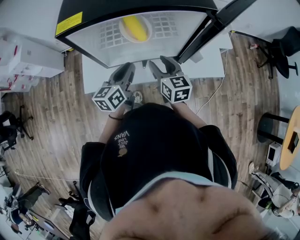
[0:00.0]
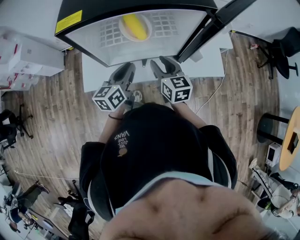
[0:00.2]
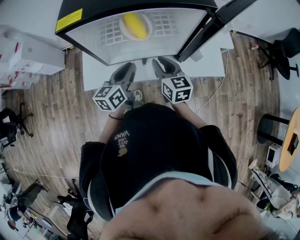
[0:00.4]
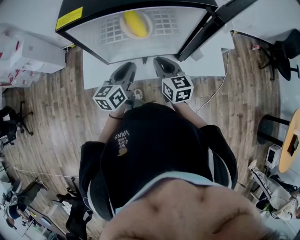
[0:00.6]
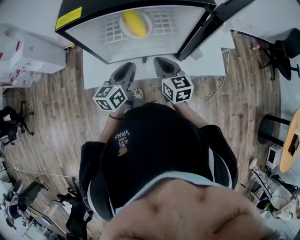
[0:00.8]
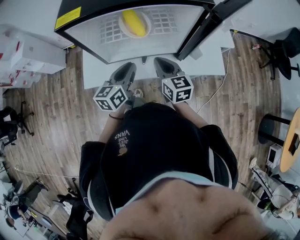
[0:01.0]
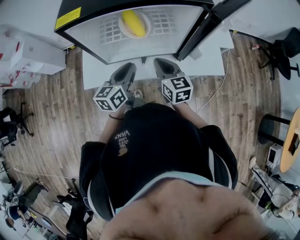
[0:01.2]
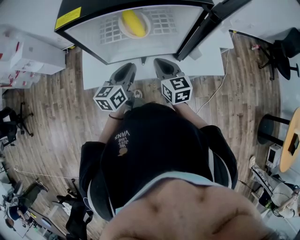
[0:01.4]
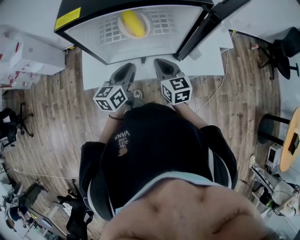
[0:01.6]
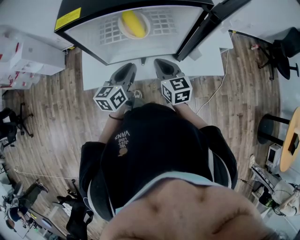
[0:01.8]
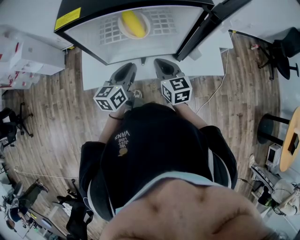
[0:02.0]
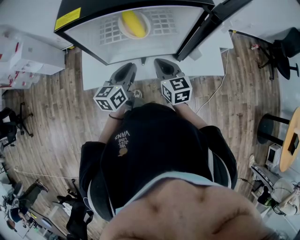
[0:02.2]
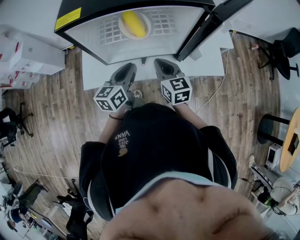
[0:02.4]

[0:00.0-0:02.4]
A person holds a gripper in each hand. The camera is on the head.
0:00.0 to 0:01.2: The right gripper closes up.
0:01.2 to 0:02.4: Neither gripper changes place.

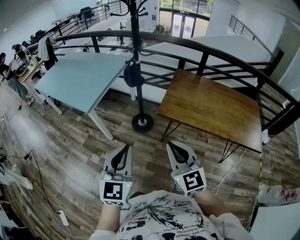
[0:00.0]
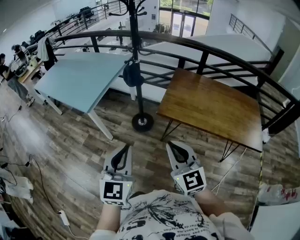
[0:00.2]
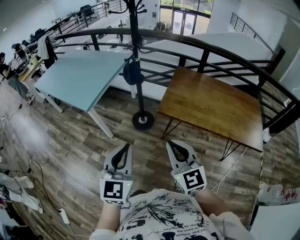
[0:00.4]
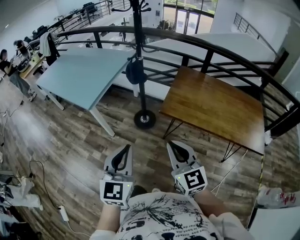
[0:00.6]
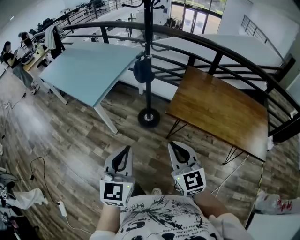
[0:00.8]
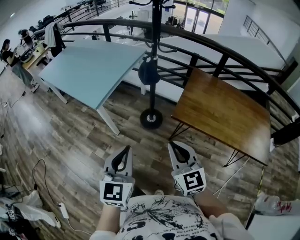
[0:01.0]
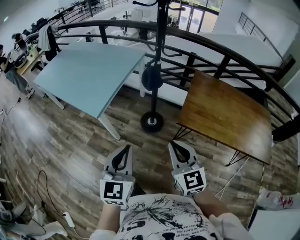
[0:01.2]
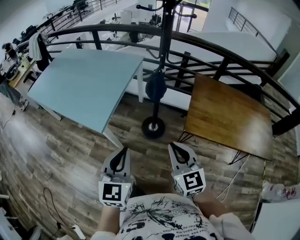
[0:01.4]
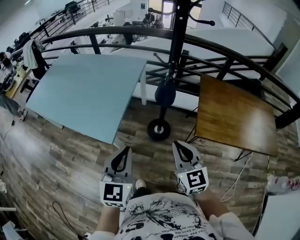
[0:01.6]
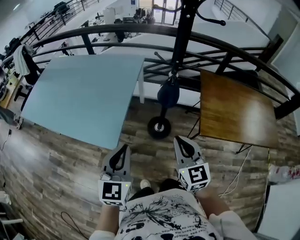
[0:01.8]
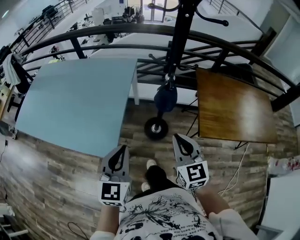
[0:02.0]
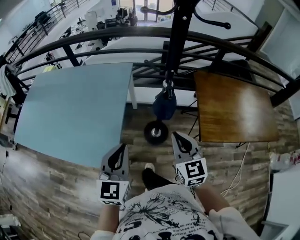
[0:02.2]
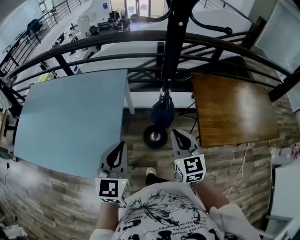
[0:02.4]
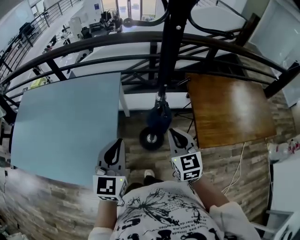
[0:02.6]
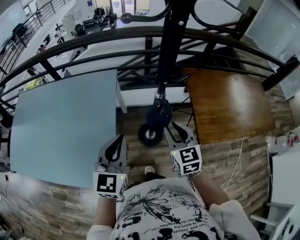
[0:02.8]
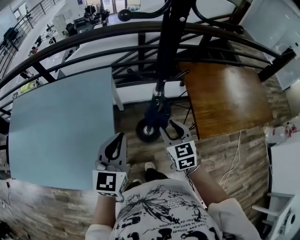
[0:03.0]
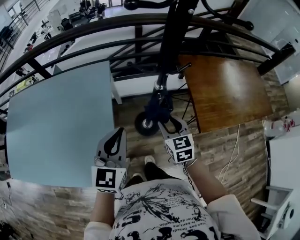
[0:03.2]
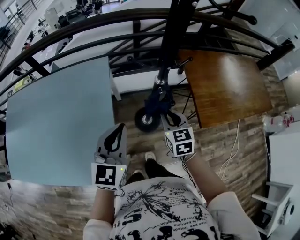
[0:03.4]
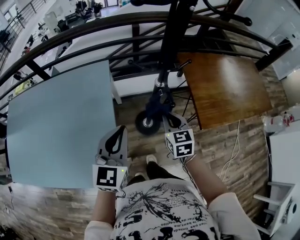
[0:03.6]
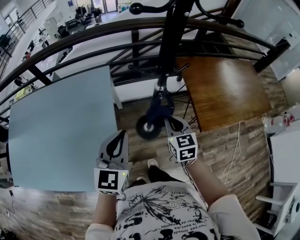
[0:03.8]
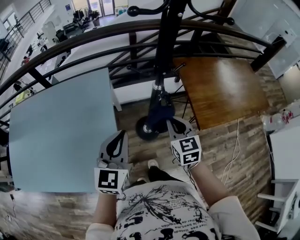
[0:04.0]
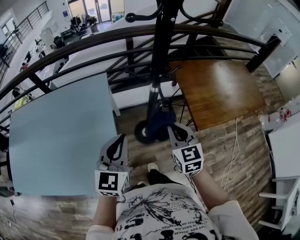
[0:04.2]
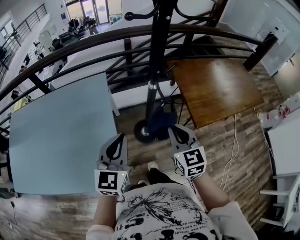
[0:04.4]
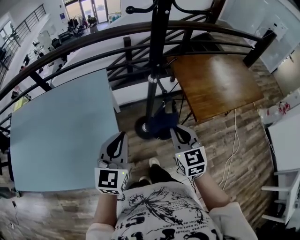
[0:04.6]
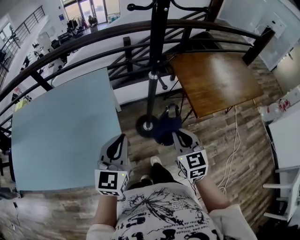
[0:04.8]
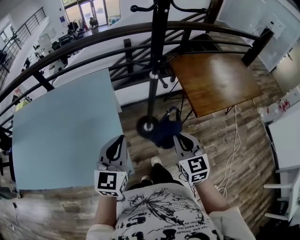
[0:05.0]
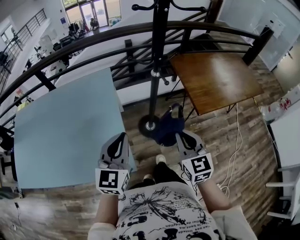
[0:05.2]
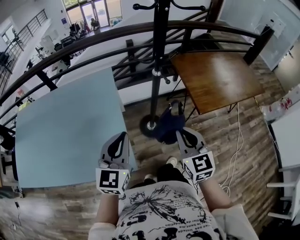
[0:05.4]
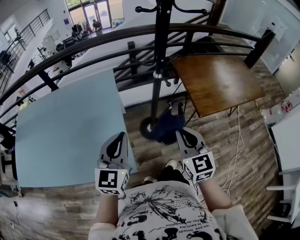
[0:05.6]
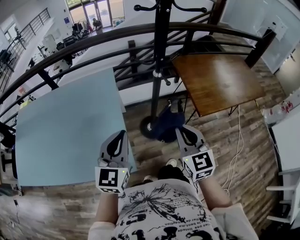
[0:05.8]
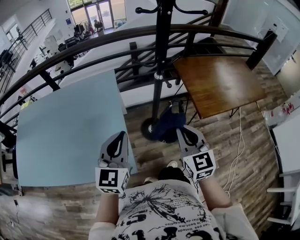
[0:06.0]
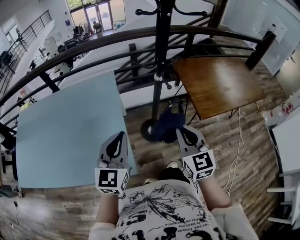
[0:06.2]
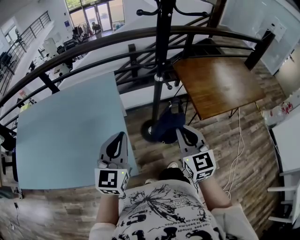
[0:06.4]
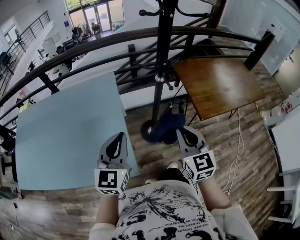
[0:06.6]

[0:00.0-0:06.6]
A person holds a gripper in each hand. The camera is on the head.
0:00.0 to 0:01.6: The pair of grippers is taken forward and to the left, some 40 cm.
0:01.6 to 0:03.2: The right gripper shifts by roughly 35 cm, changes its angle by some 30 degrees, and opens its fingers. The left gripper ends up roughly 35 cm from where it was, and changes its angle by some 30 degrees.
0:03.2 to 0:05.0: The right gripper goes roughly 25 cm backward and upward, and closes up. Meanwhile the left gripper is displaced backward by some 15 cm.
0:05.0 to 0:06.6: The right gripper shifts by roughly 5 cm.

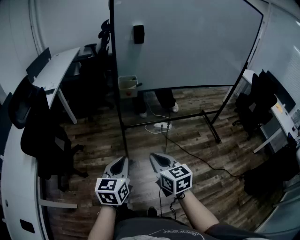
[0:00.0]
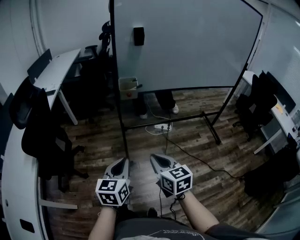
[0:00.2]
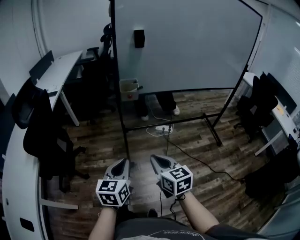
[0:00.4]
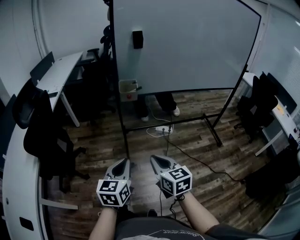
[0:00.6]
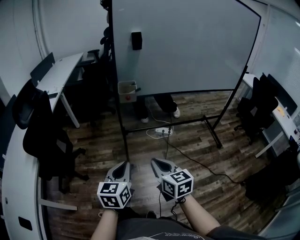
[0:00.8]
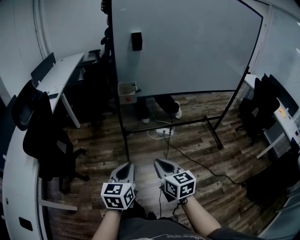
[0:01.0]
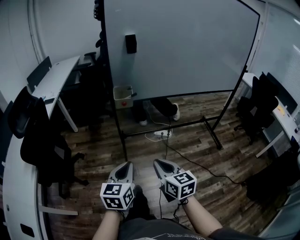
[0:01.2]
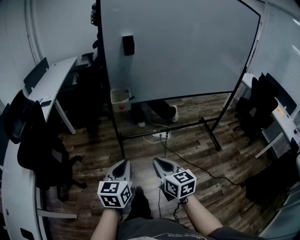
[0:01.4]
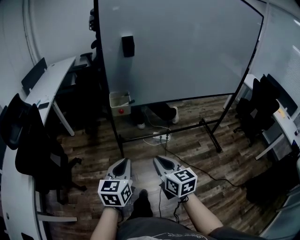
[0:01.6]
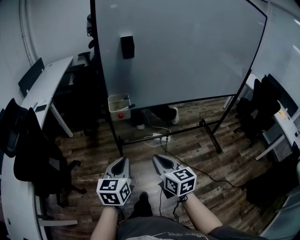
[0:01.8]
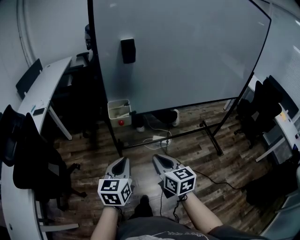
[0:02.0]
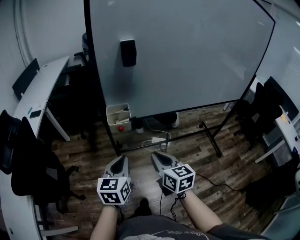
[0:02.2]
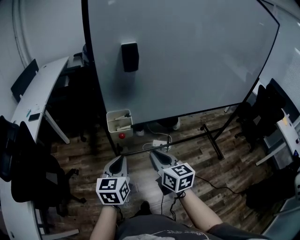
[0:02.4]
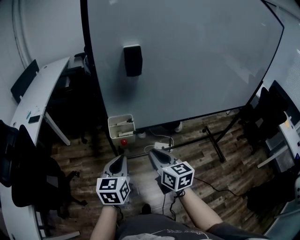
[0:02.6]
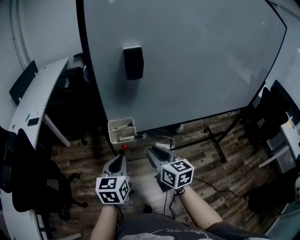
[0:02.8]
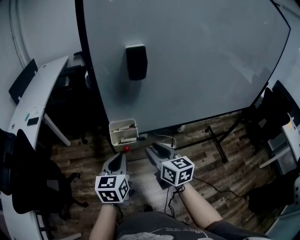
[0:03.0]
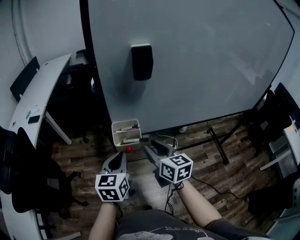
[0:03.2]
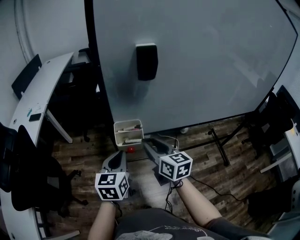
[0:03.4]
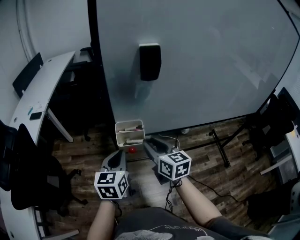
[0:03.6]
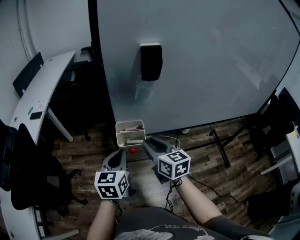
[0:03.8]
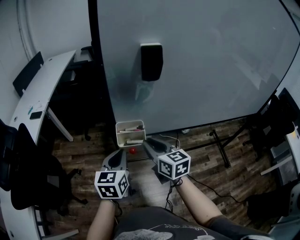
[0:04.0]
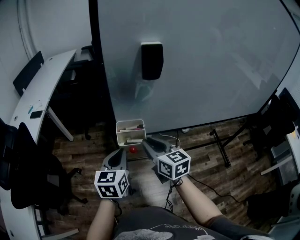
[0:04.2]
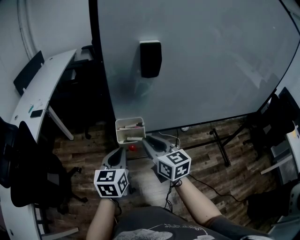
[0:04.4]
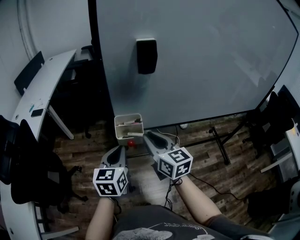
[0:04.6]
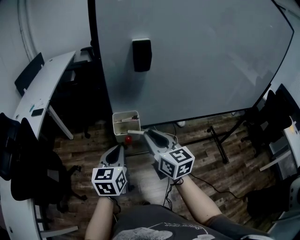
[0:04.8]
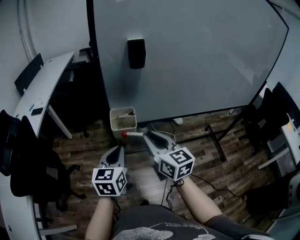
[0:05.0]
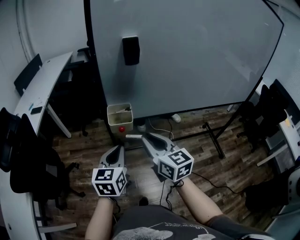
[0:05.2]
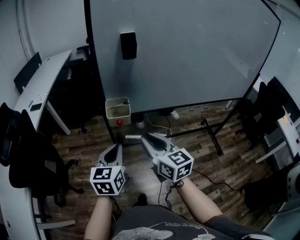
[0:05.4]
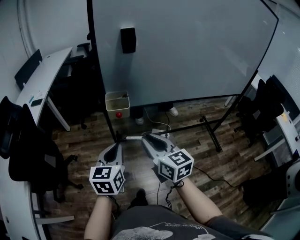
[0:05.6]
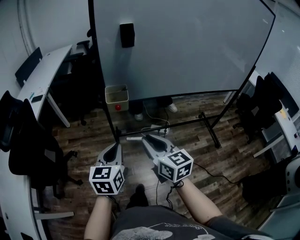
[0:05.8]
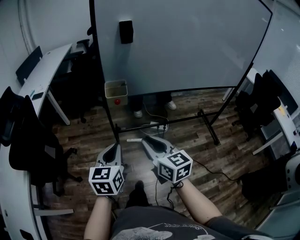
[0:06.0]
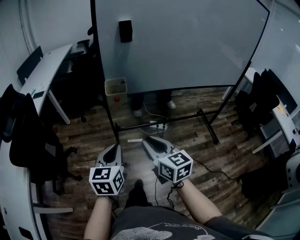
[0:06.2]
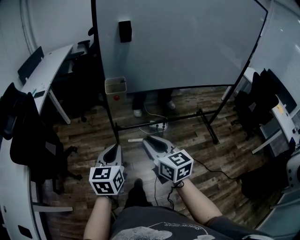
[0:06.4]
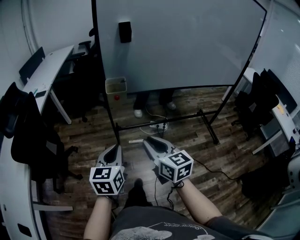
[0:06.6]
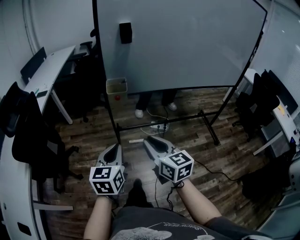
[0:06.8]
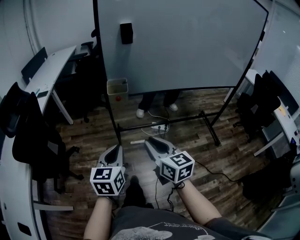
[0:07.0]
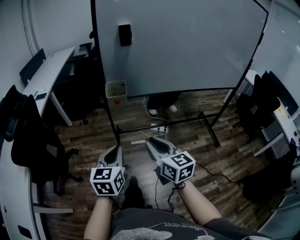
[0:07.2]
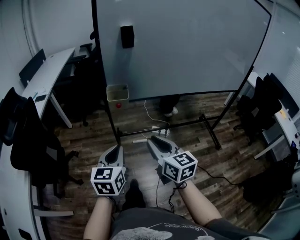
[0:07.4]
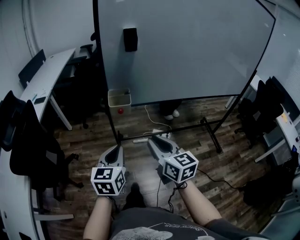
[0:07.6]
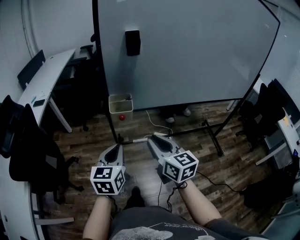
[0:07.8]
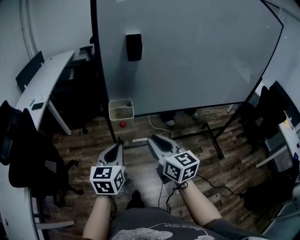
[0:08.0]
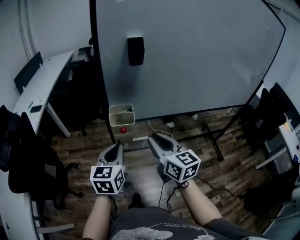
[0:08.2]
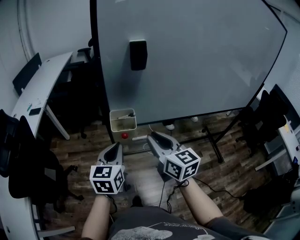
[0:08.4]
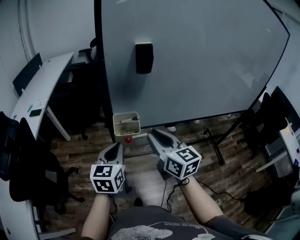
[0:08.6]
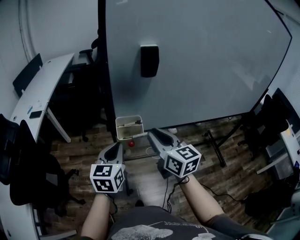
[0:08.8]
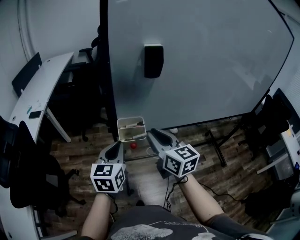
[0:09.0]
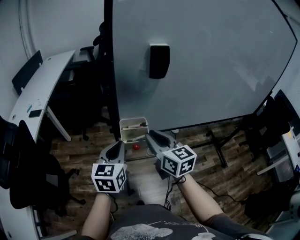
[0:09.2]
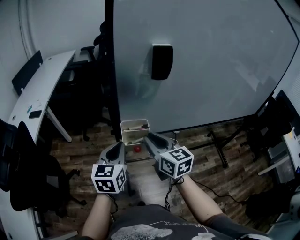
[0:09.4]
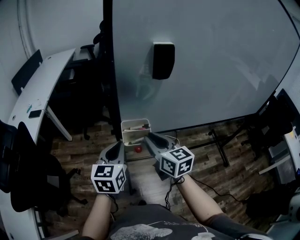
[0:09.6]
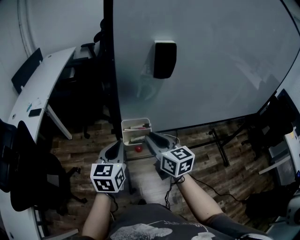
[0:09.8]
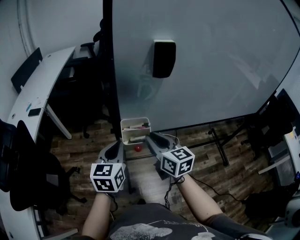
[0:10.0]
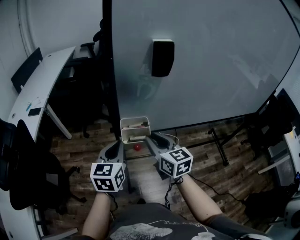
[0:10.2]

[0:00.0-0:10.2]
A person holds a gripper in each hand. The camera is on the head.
0:00.0 to 0:01.4: The left gripper moves to the right and forward, approximately 5 cm, while the right gripper travels to the right by approximately 5 cm.
0:01.4 to 0:03.0: Both grippers move forward, about 35 cm. The right gripper opens its fingers.
0:03.0 to 0:04.4: The right gripper changes place by some 5 cm.
0:04.4 to 0:05.8: Both grippers move backward, approximately 20 cm.
0:05.8 to 0:07.2: The grippers both shift backward by roughly 5 cm.
0:07.2 to 0:08.8: Both grippers move forward, roughly 25 cm.
0:08.8 to 0:10.2: The left gripper moves about 5 cm, while the right gripper moves downward, roughly 10 cm.

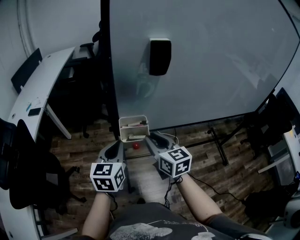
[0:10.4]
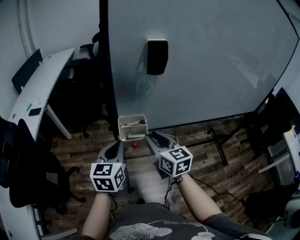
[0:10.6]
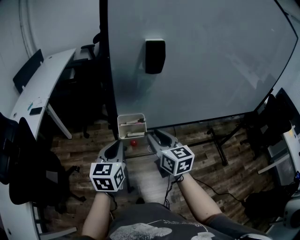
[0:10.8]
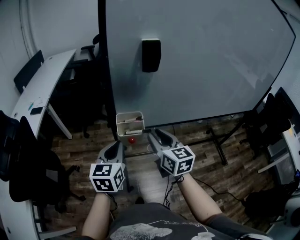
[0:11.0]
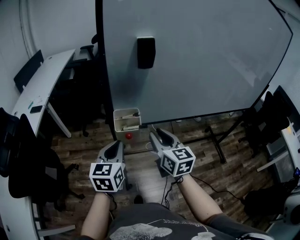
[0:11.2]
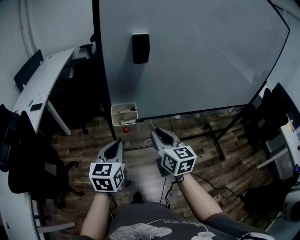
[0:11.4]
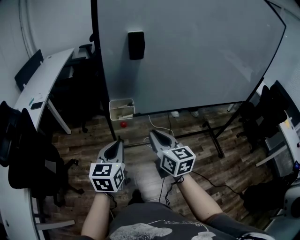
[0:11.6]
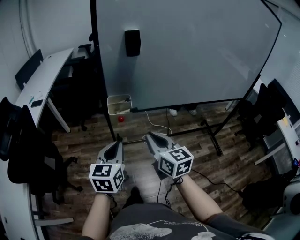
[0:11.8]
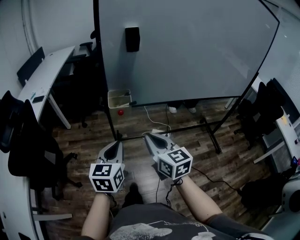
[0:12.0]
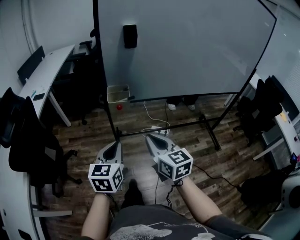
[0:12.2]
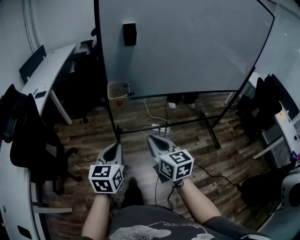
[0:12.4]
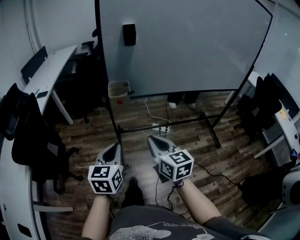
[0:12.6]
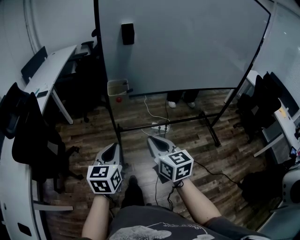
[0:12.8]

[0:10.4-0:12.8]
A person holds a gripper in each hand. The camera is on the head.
0:10.4 to 0:11.6: The left gripper moves backward, some 10 cm. The right gripper moves backward and to the right, approximately 15 cm.
0:11.6 to 0:12.8: Both grippers move backward, about 20 cm.

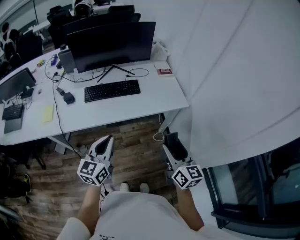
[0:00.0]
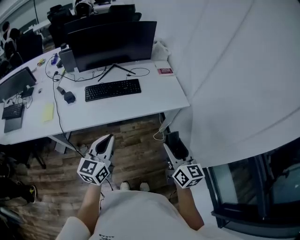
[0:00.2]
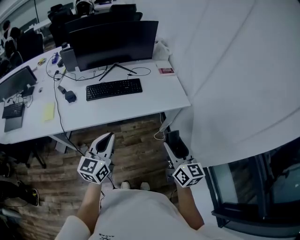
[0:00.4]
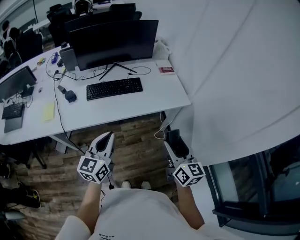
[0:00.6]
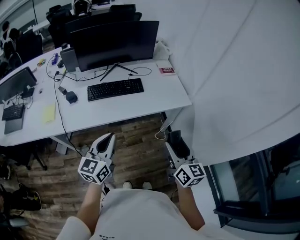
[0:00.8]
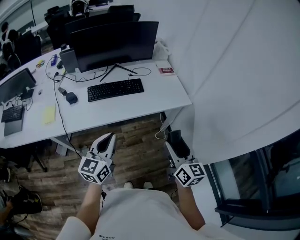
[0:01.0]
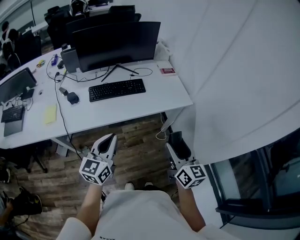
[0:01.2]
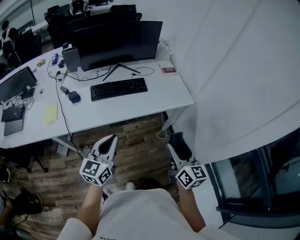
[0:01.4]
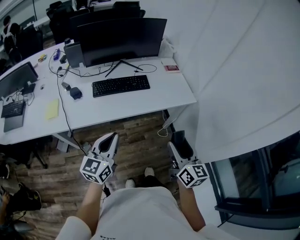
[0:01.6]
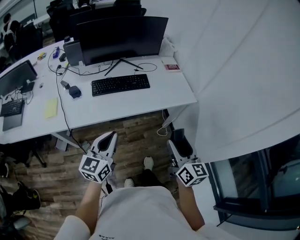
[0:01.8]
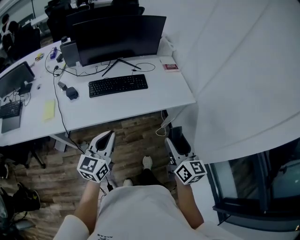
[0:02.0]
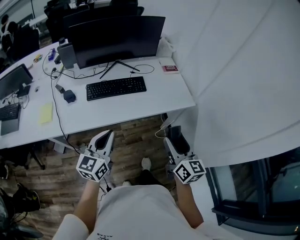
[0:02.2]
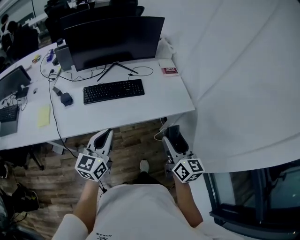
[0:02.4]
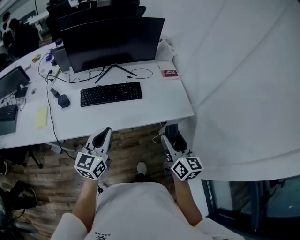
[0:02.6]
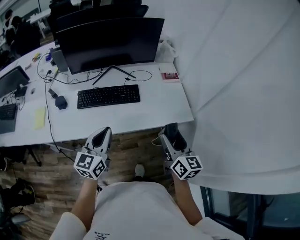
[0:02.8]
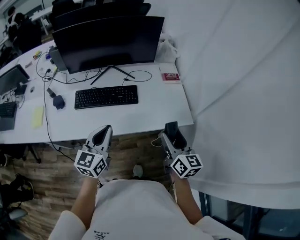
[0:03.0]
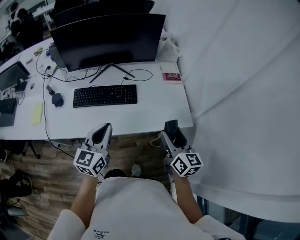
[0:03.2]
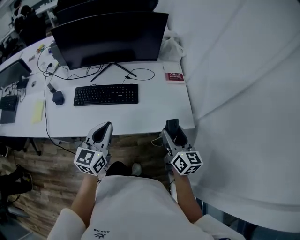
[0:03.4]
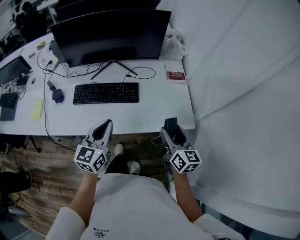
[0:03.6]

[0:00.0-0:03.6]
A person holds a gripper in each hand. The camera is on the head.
0:00.0 to 0:01.8: Both grippers travel together to the left, roughly 5 cm.
0:01.8 to 0:03.6: The right gripper shifts about 30 cm forward; the left gripper heads forward and to the right, covering approximately 25 cm.
